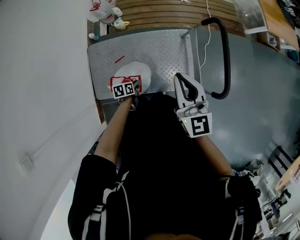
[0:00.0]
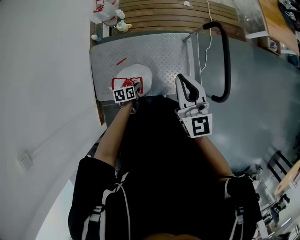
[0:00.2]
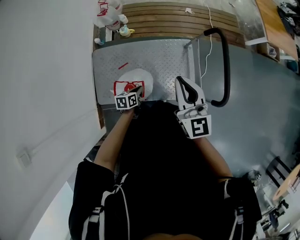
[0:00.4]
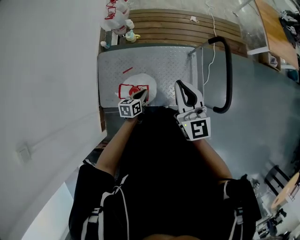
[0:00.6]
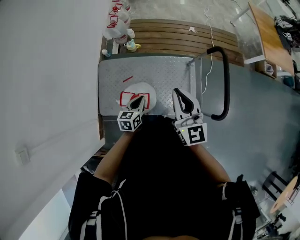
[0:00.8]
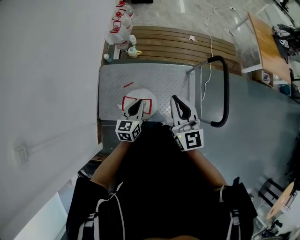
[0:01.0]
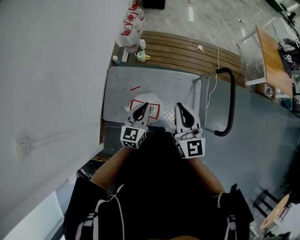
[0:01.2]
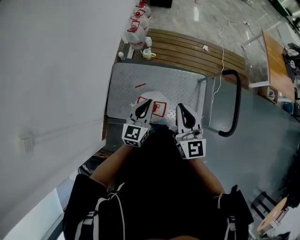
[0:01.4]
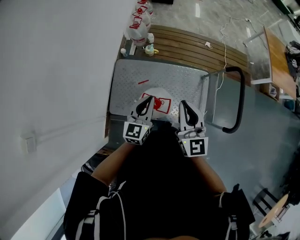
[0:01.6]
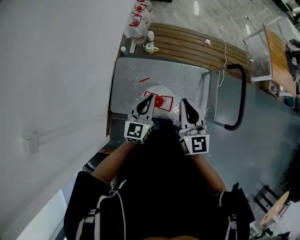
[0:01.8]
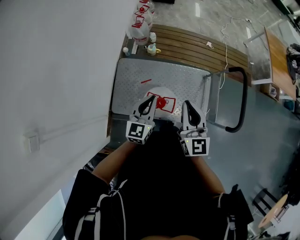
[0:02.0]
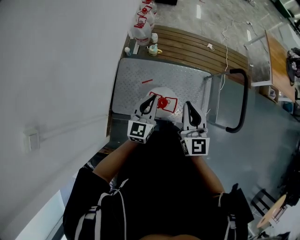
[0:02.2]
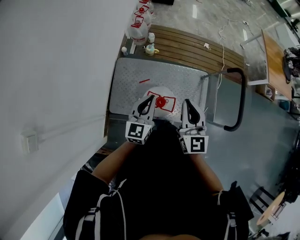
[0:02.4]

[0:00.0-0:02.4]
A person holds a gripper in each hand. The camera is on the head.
0:00.0 to 0:01.2: The right gripper is displaced to the left by about 10 cm, while the left gripper is displaced upward by roughly 30 cm, and points its fingers roughly 40 degrees further upward.
0:01.2 to 0:02.4: Both grippers travel together to the left, roughly 10 cm.

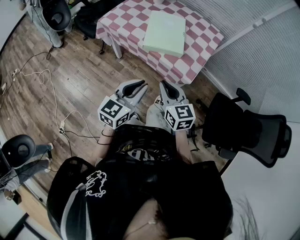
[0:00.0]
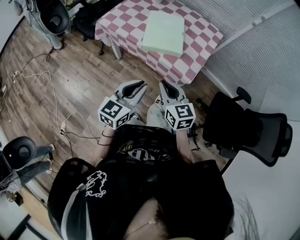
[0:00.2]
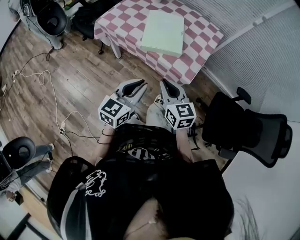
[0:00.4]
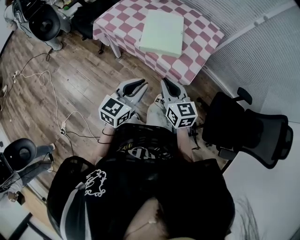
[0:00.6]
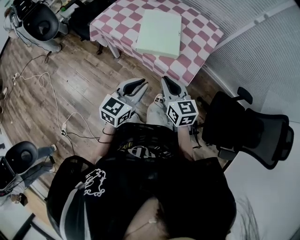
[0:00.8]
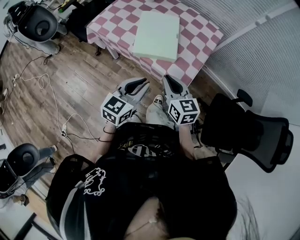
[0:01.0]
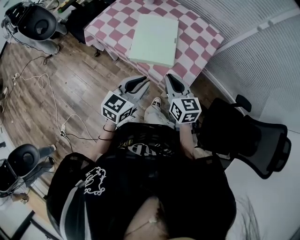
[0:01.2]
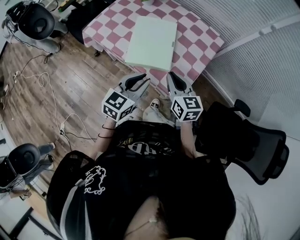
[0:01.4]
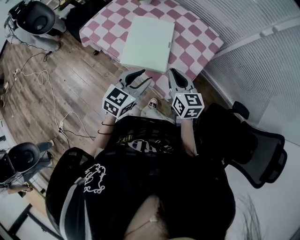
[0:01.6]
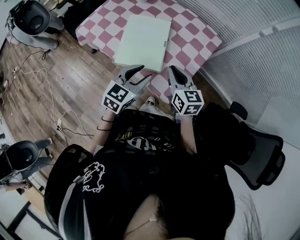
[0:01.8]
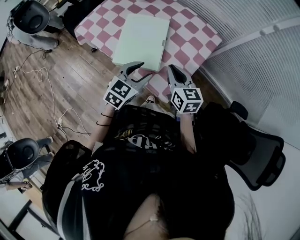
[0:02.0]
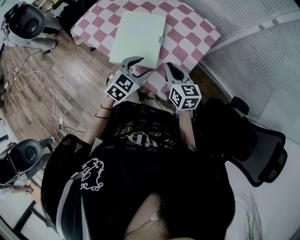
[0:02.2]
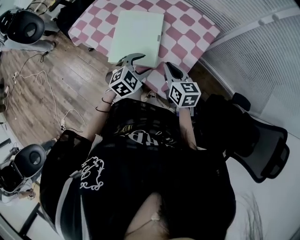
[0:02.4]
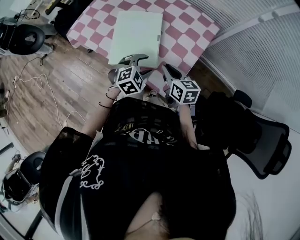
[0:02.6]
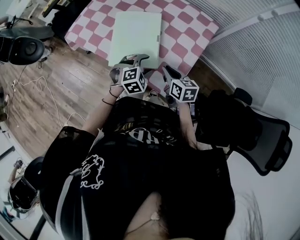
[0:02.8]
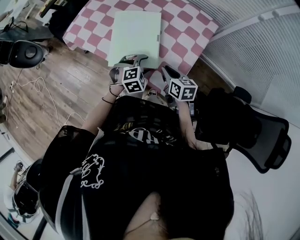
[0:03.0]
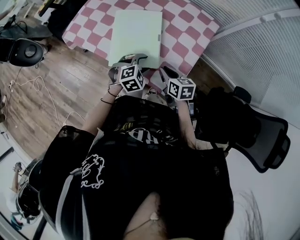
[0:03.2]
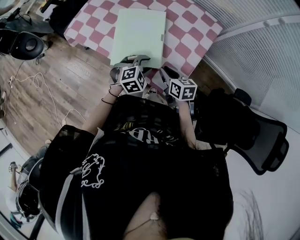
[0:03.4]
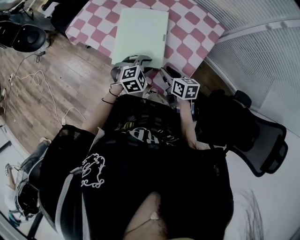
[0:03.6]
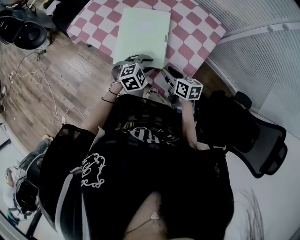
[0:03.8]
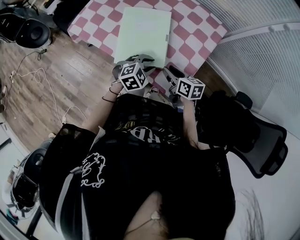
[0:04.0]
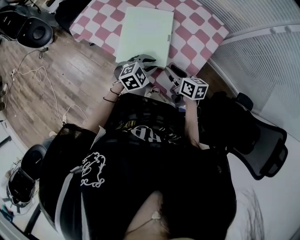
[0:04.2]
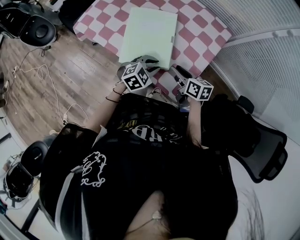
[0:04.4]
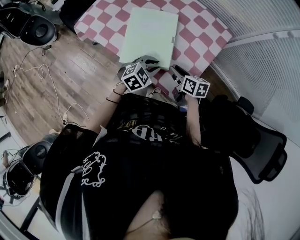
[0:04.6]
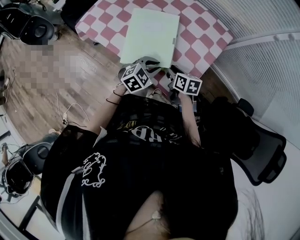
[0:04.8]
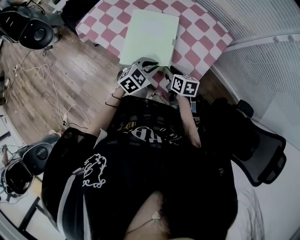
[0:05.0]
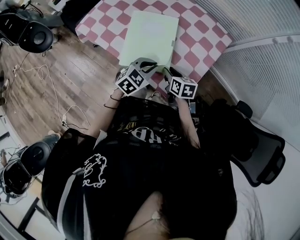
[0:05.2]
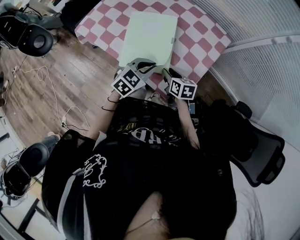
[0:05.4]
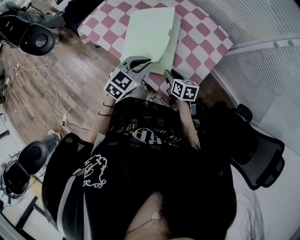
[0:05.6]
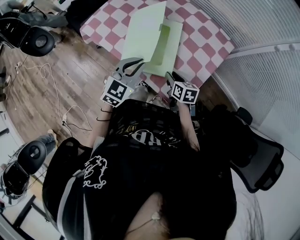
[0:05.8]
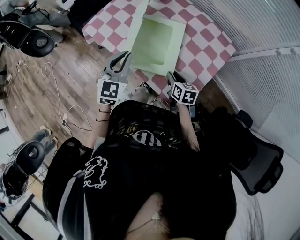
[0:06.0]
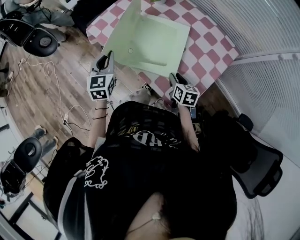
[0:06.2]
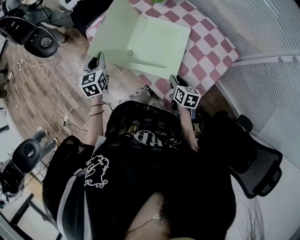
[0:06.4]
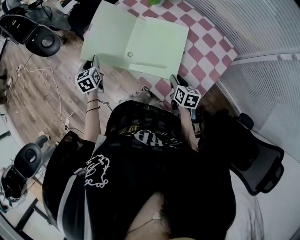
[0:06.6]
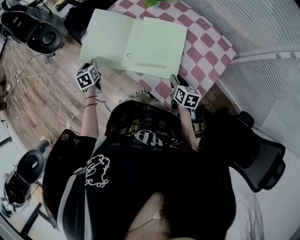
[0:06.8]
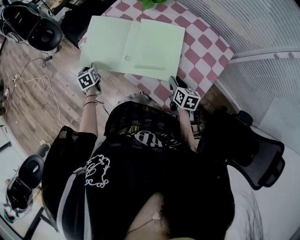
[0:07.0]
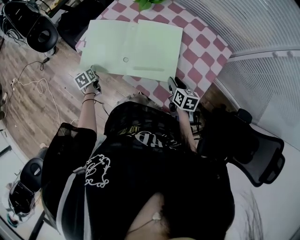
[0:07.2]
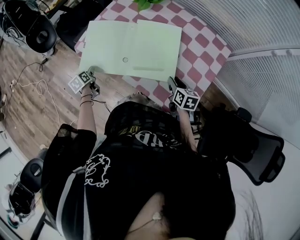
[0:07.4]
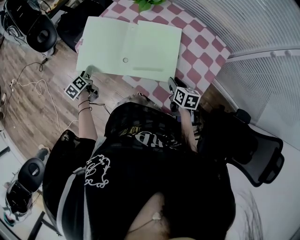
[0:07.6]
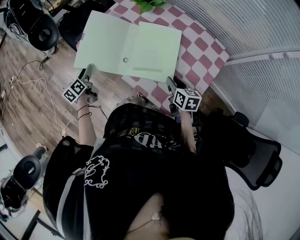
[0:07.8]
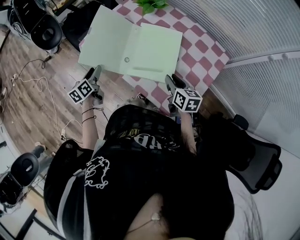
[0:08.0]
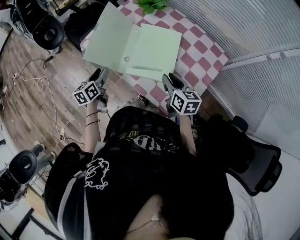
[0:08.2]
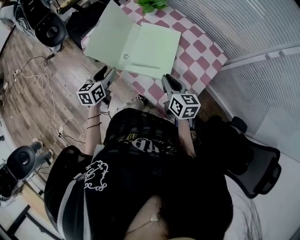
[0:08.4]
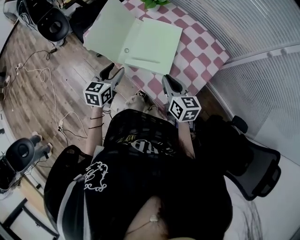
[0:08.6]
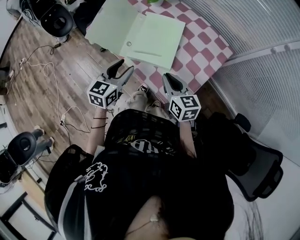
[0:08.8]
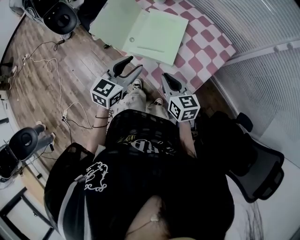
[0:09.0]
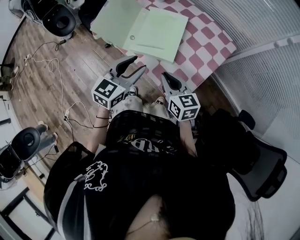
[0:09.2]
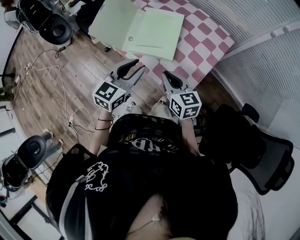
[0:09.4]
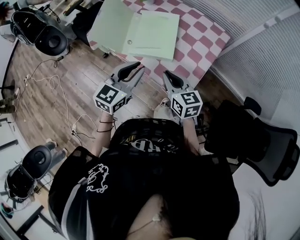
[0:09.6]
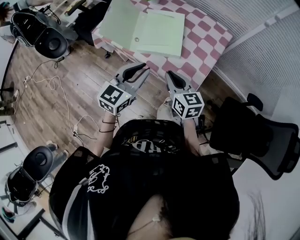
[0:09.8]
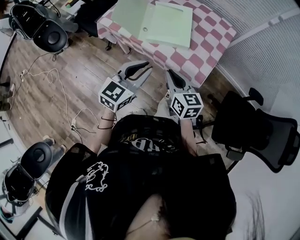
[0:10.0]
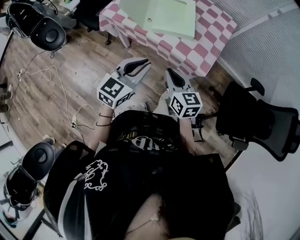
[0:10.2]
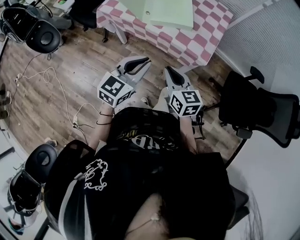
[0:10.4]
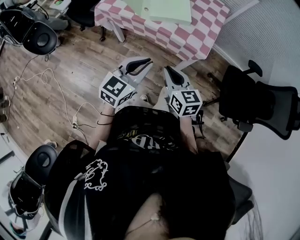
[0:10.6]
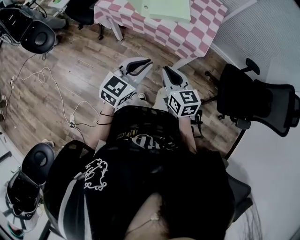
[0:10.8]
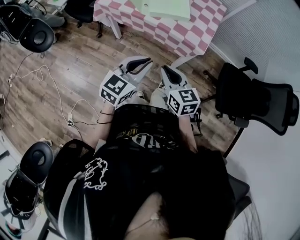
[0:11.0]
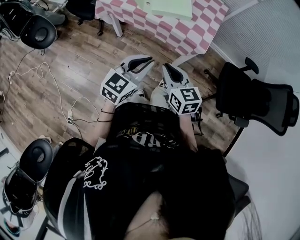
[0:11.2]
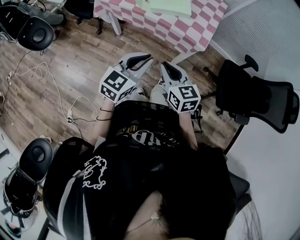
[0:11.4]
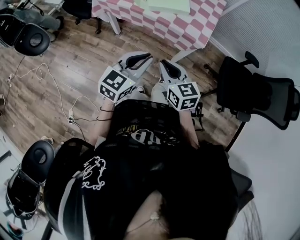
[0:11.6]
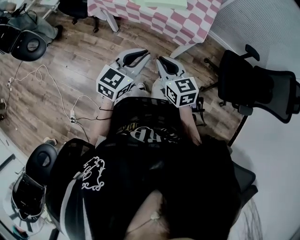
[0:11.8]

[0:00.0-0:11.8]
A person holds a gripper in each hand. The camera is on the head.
0:00.0 to 0:01.4: Both grippers move forward and to the right, approximately 20 cm.
0:01.4 to 0:03.0: Both grippers move downward and forward, roughly 20 cm. The right gripper changes its angle by about 20 degrees, while the left gripper points its fingers about 40 degrees further downward, and opens.
0:03.0 to 0:04.4: The left gripper turns by approximately 20 degrees, and closes.
0:04.4 to 0:06.0: The left gripper is displaced to the left and upward by about 20 cm, and rotates roughly 50 degrees. Meanwhile the right gripper ends up roughly 5 cm from where it was.
0:06.0 to 0:07.4: The left gripper travels to the left, downward and forward by roughly 35 cm, rotates around the line of its fingers by roughly 60 degrees, counterclockwise from behind, and opens up.
0:07.4 to 0:08.8: The left gripper travels to the right, upward and backward by roughly 40 cm, and changes its angle by approximately 50 degrees; the right gripper moves upward and backward, approximately 15 cm, and rotates about 30 degrees.
0:08.8 to 0:10.4: The right gripper heads backward and to the left, covering about 25 cm, while the left gripper moves backward, about 20 cm, swivels about 30 degrees, and closes.
0:10.4 to 0:11.8: The grippers both shift backward by approximately 5 cm.

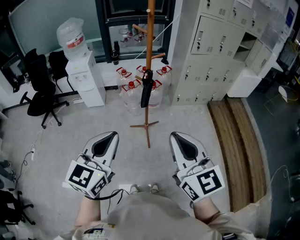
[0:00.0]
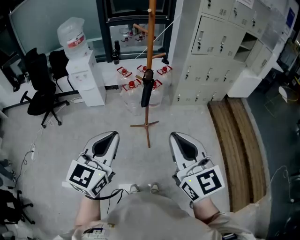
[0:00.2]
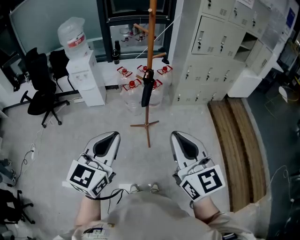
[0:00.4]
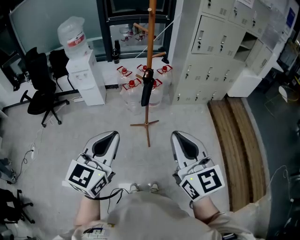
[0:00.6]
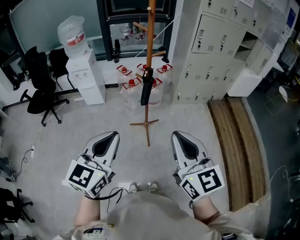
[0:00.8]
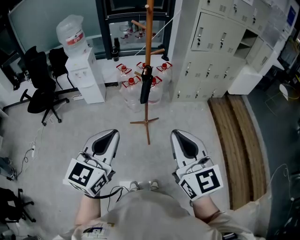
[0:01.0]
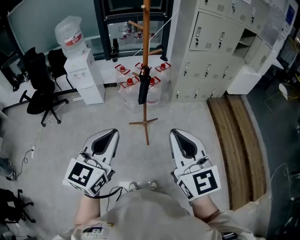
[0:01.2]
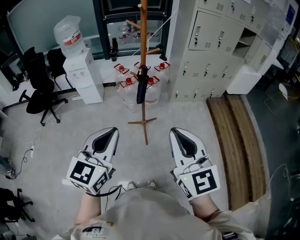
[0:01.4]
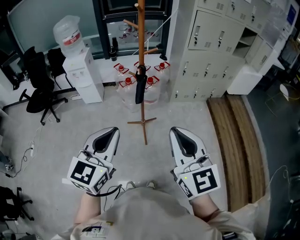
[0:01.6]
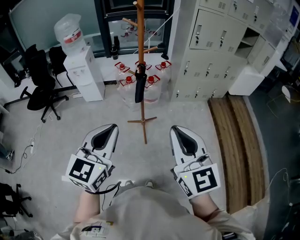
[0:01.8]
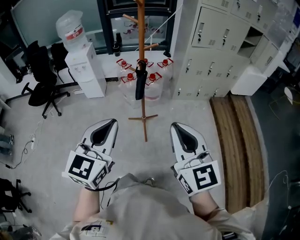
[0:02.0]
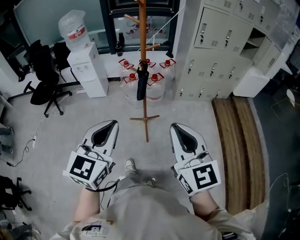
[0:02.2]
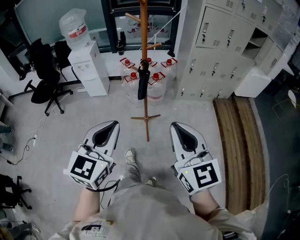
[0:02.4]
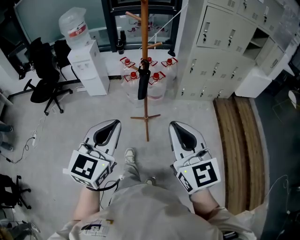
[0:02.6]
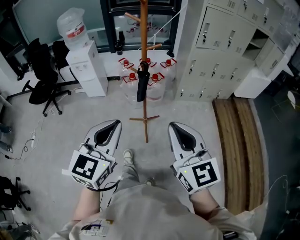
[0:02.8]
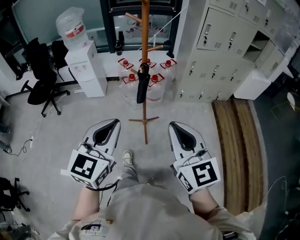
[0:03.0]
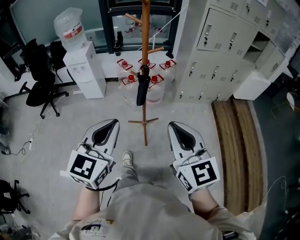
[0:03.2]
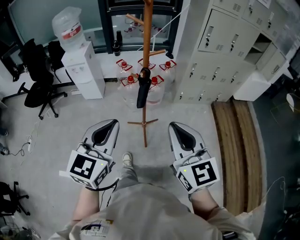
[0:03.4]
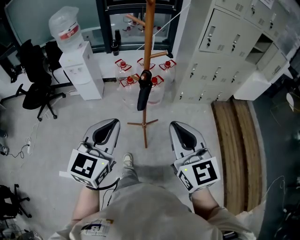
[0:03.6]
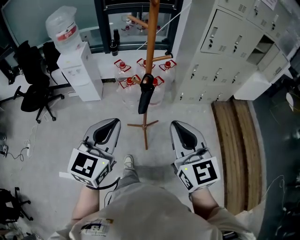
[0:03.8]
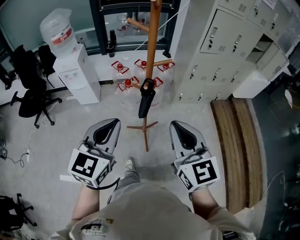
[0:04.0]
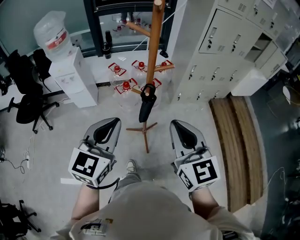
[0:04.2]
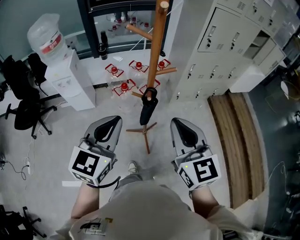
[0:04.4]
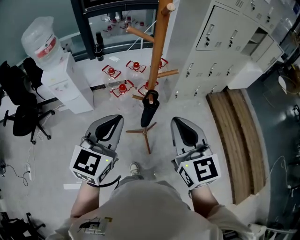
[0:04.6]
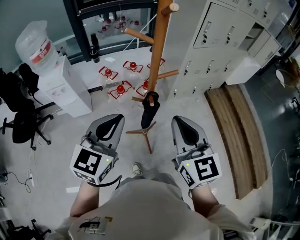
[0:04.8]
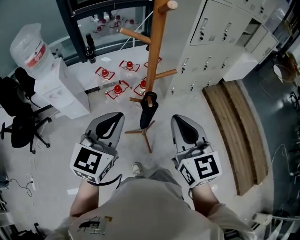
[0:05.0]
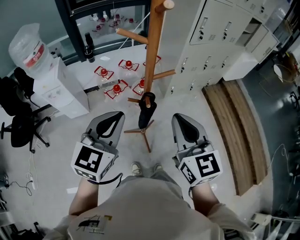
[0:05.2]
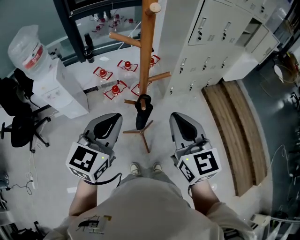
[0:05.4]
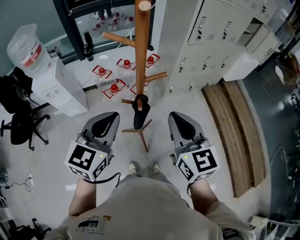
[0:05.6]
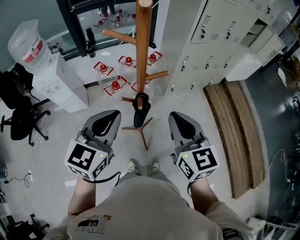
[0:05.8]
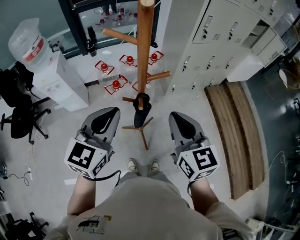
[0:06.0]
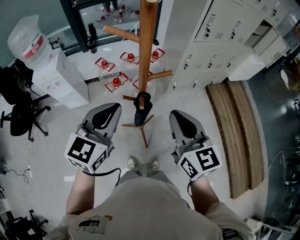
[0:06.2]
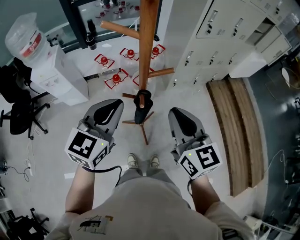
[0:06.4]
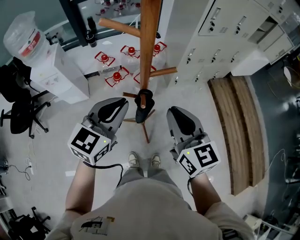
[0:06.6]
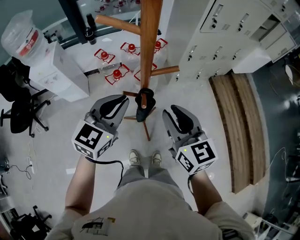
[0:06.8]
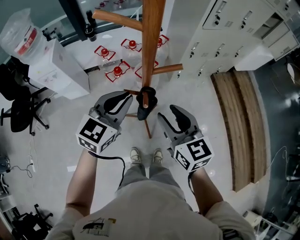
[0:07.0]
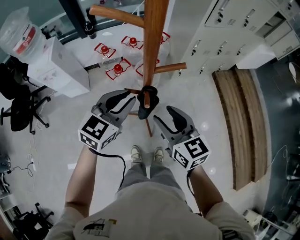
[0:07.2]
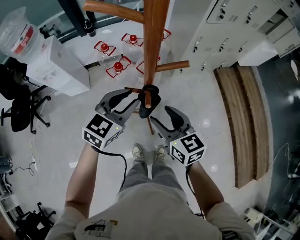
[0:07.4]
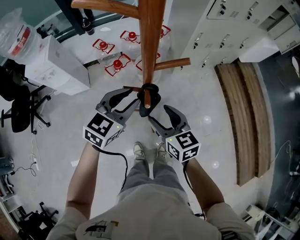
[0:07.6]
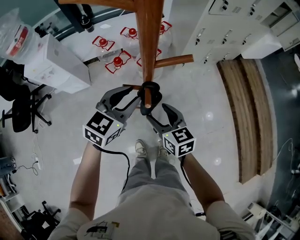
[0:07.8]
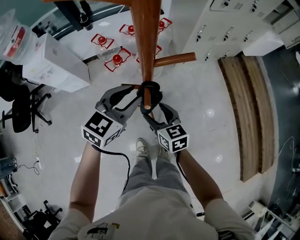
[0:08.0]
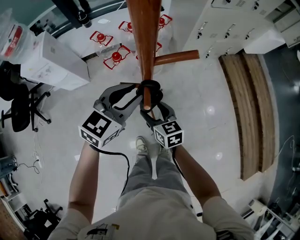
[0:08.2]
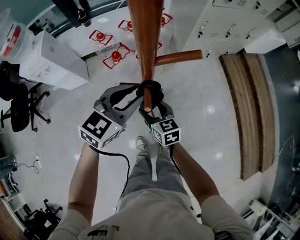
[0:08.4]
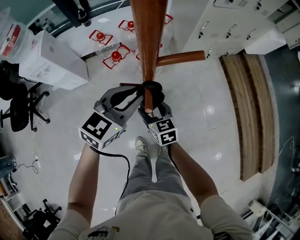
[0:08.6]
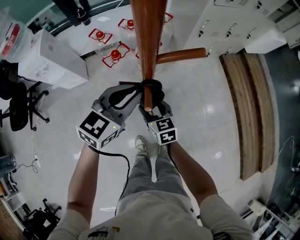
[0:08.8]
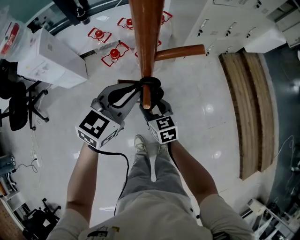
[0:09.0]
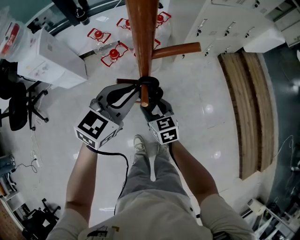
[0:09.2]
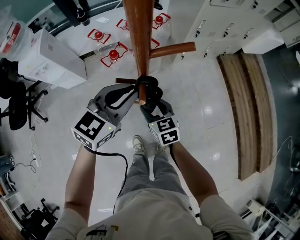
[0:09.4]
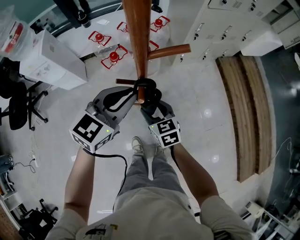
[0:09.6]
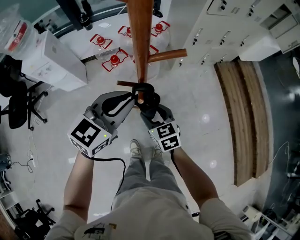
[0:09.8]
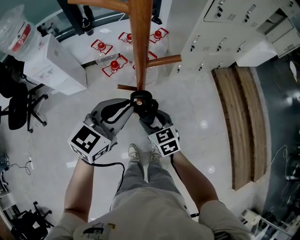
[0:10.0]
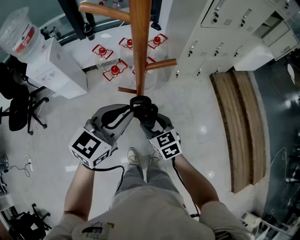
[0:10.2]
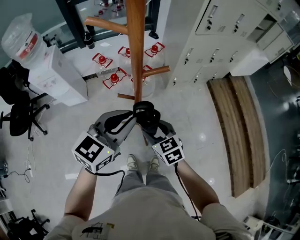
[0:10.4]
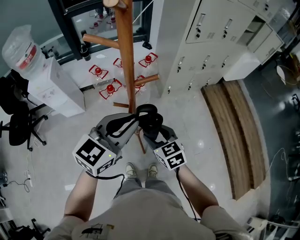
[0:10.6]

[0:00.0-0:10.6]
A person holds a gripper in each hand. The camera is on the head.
0:00.0 to 0:01.6: Both grippers move to the right, roughly 5 cm.
0:01.6 to 0:03.0: The grippers both shift forward by roughly 5 cm.
0:03.0 to 0:04.6: The right gripper goes some 25 cm forward and to the left; the left gripper is displaced forward by roughly 30 cm.
0:04.6 to 0:06.0: The two grippers go some 10 cm forward.
0:06.0 to 0:07.6: The right gripper moves downward, some 20 cm, and opens up. Meanwhile the left gripper shifts some 20 cm downward and forward, and opens.
0:07.6 to 0:09.0: The right gripper travels downward by approximately 15 cm.
0:09.0 to 0:10.6: The right gripper moves upward, backward and to the right, about 20 cm. Meanwhile the left gripper moves upward and backward, about 20 cm.
